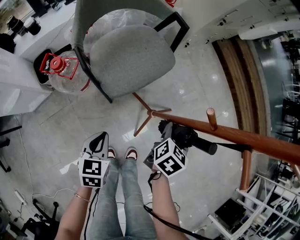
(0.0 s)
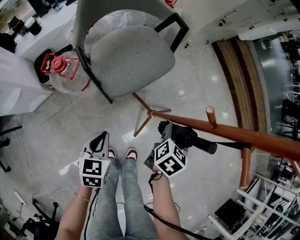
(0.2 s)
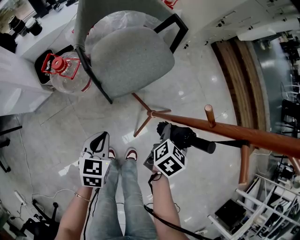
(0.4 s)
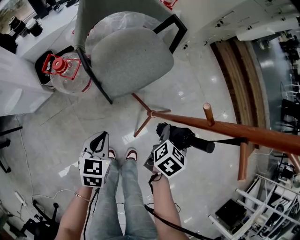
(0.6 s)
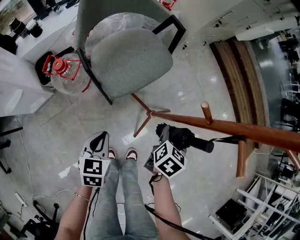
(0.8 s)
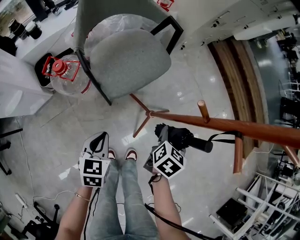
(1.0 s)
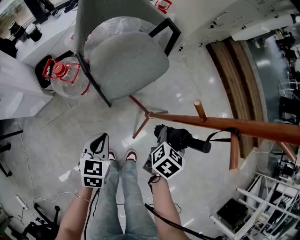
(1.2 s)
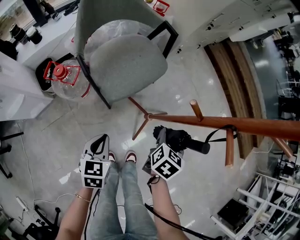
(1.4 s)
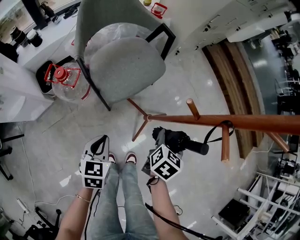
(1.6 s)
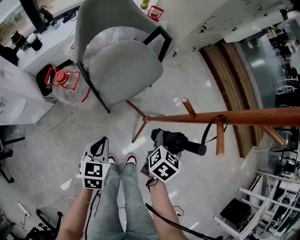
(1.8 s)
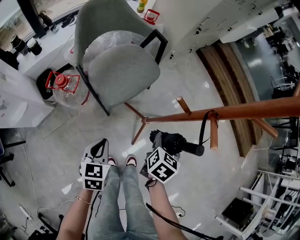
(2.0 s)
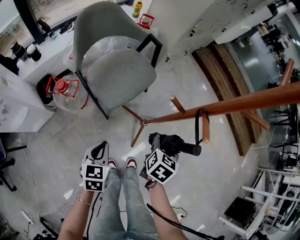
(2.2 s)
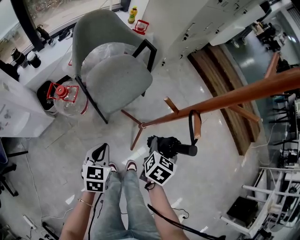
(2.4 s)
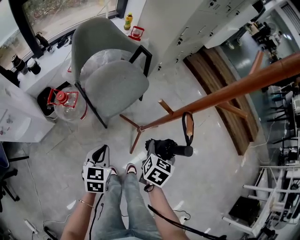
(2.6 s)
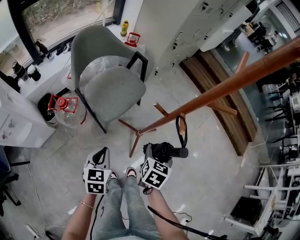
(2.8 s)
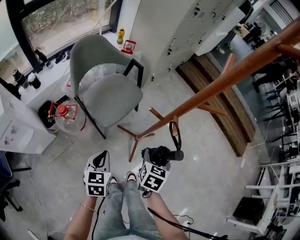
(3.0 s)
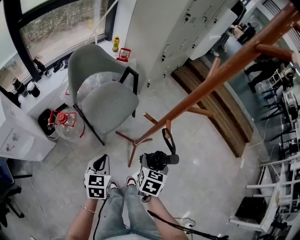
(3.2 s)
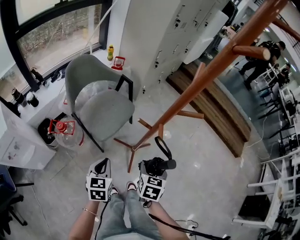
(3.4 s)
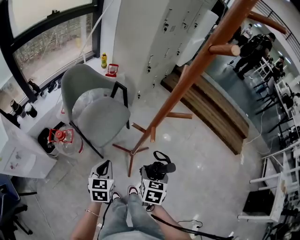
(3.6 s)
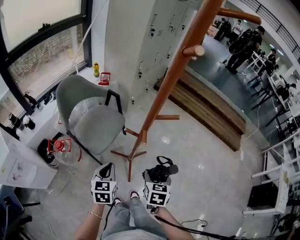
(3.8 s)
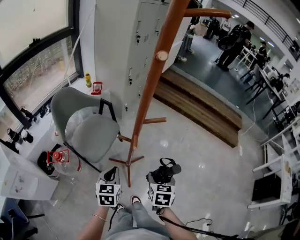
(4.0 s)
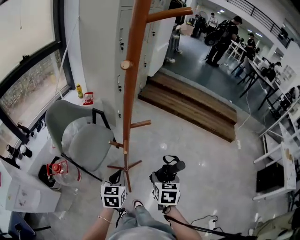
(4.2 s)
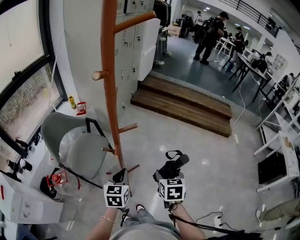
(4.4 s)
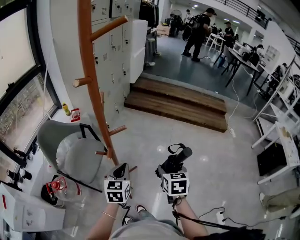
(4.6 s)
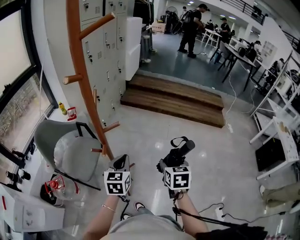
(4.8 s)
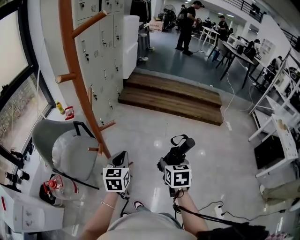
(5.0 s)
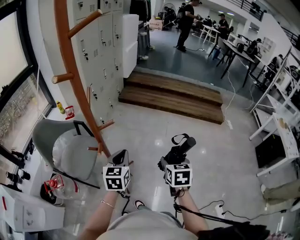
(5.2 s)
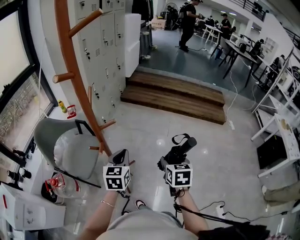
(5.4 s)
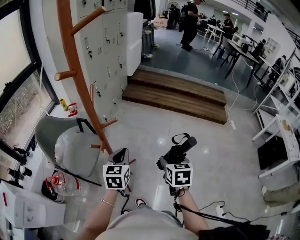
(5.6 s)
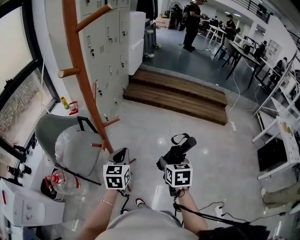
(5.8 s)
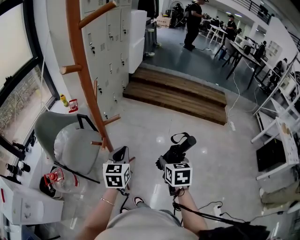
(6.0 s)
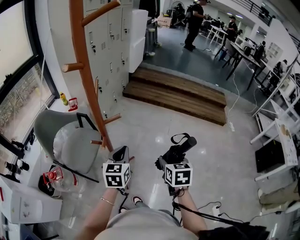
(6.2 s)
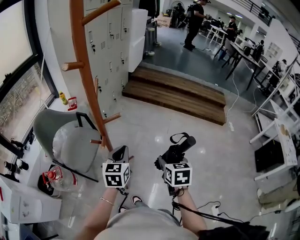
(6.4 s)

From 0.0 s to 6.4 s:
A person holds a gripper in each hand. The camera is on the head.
From 0.0 s to 1.6 s: The right gripper ends up about 5 cm from where it was.
From 1.6 s to 3.2 s: The right gripper goes some 15 cm upward and backward. The left gripper shifts some 15 cm upward.
From 3.2 s to 4.8 s: The left gripper is displaced to the right, upward and forward by approximately 35 cm, and turns by some 30 degrees. Meanwhile the right gripper is displaced to the right and upward by roughly 30 cm.
From 4.8 s to 6.4 s: The grippers make only small movements.

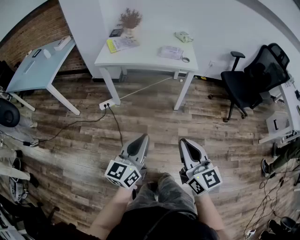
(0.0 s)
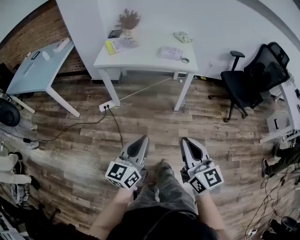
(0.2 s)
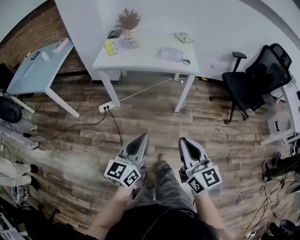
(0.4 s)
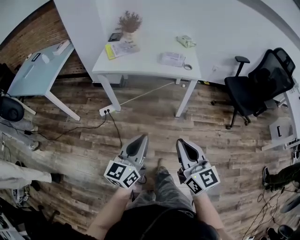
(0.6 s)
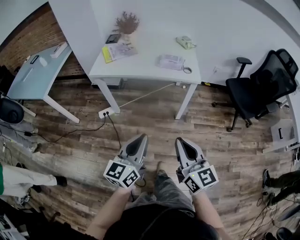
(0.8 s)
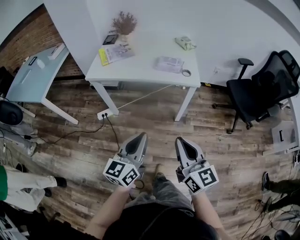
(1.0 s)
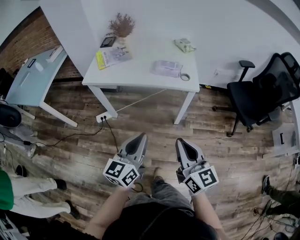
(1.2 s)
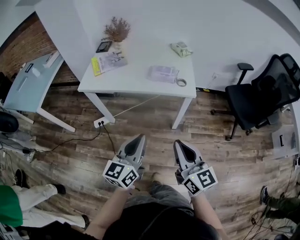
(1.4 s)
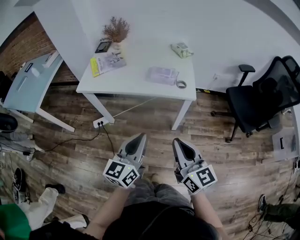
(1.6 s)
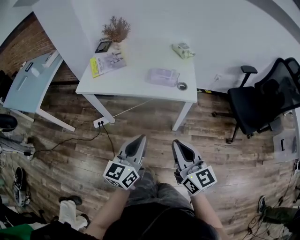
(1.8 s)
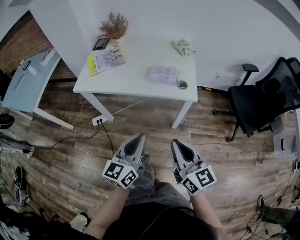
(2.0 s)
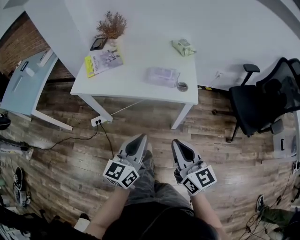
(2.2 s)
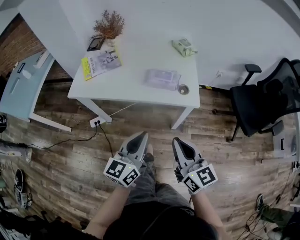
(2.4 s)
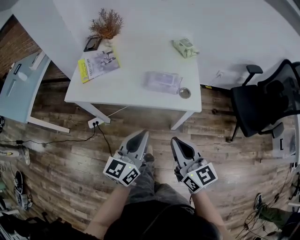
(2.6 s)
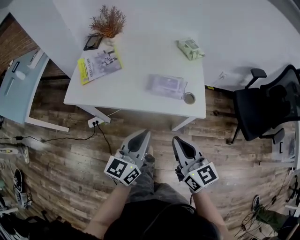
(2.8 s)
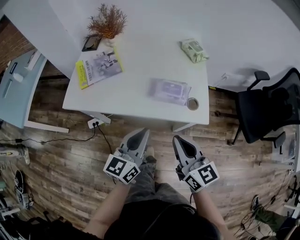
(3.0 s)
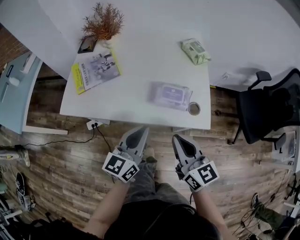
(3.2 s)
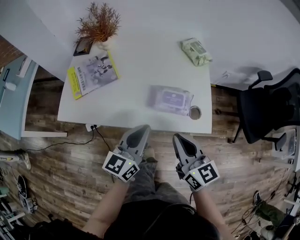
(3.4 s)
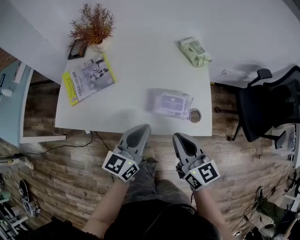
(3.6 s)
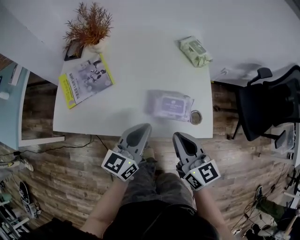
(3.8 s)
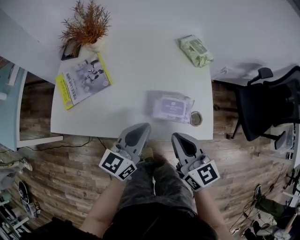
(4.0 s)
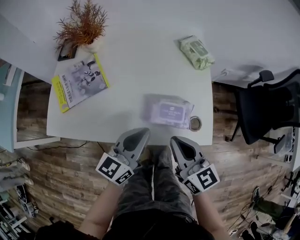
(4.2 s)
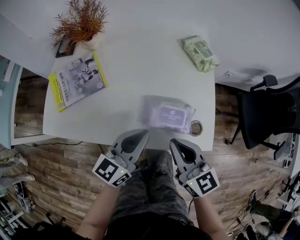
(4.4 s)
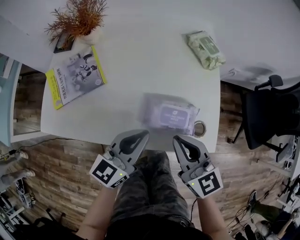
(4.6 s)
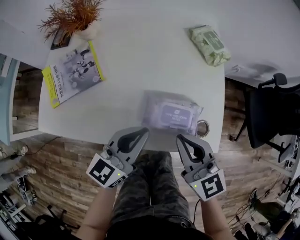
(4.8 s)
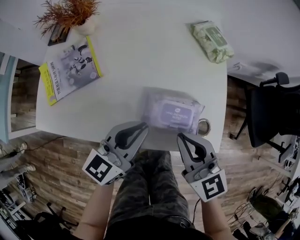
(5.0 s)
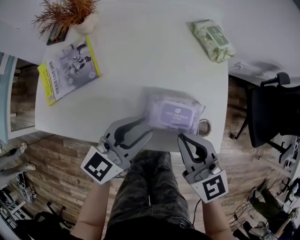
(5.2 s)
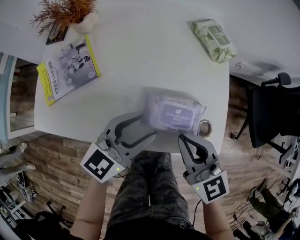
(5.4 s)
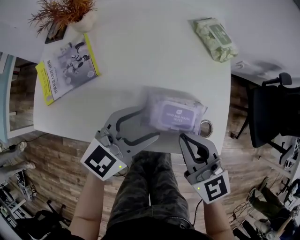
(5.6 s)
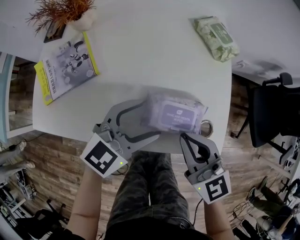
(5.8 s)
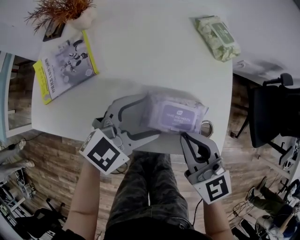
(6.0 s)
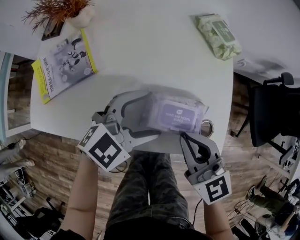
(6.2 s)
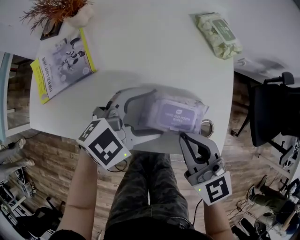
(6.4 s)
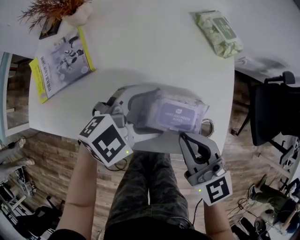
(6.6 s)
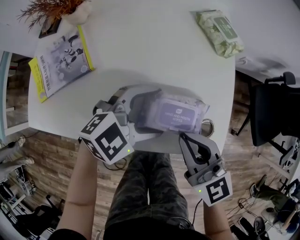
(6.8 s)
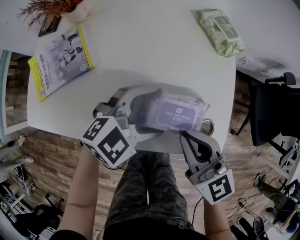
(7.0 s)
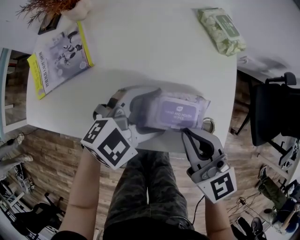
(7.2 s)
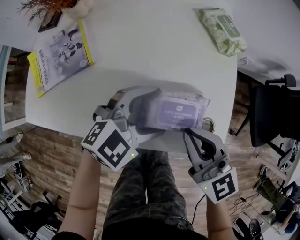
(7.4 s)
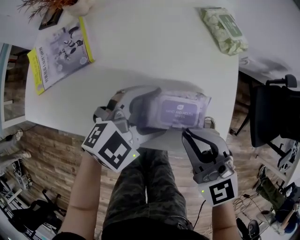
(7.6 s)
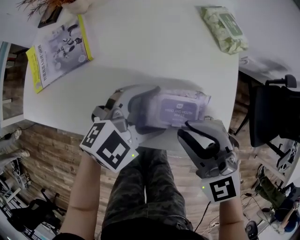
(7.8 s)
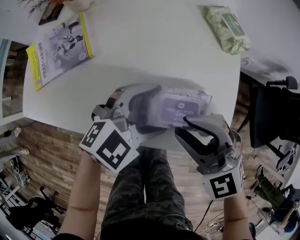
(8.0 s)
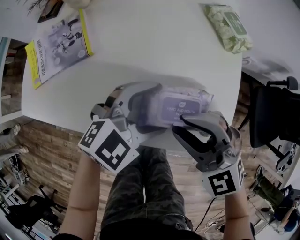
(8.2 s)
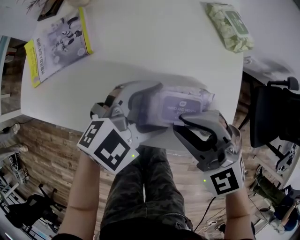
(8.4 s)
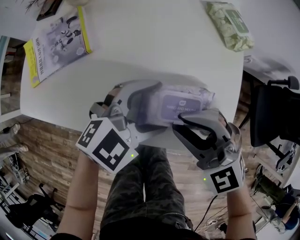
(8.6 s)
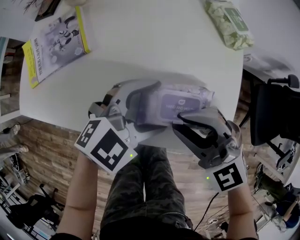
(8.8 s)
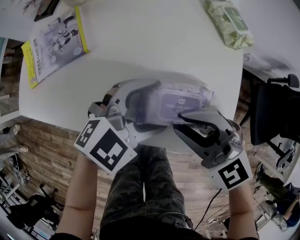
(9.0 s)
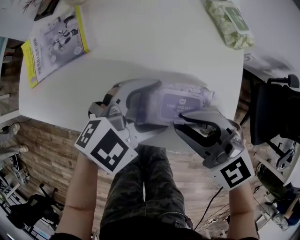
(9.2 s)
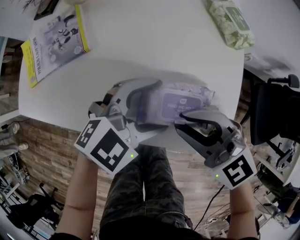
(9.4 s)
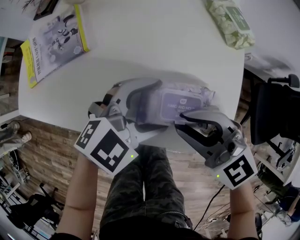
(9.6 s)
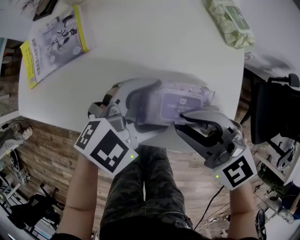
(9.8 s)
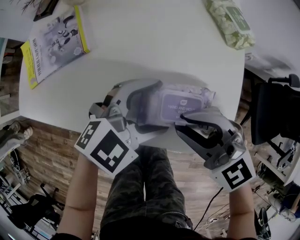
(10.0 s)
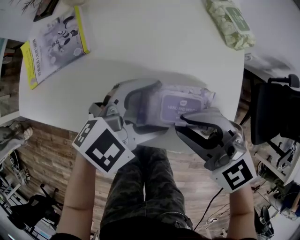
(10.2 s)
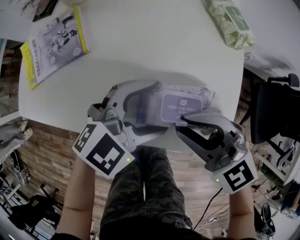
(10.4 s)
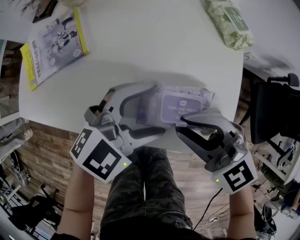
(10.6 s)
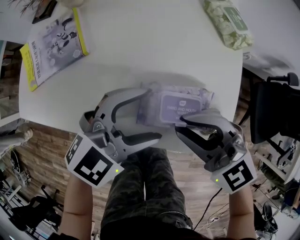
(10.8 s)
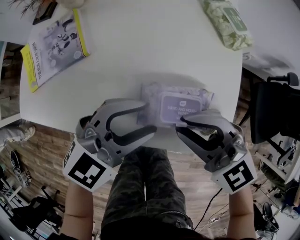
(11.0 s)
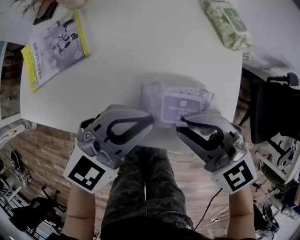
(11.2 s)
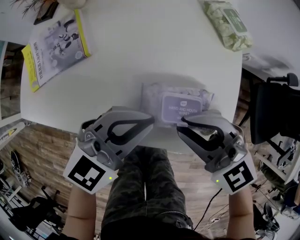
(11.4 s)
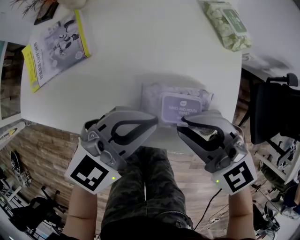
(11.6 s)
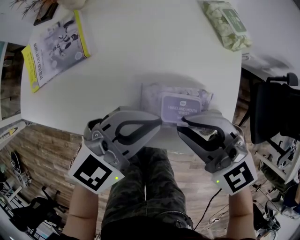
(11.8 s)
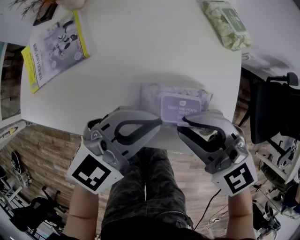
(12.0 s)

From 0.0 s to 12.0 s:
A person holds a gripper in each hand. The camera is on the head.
From 0.0 s to 1.6 s: Both grippers travel together forward, about 30 cm.
From 1.6 s to 3.0 s: Both grippers move forward, some 20 cm.
From 3.0 s to 4.4 s: Both grippers move forward, about 15 cm.
From 4.4 s to 6.0 s: The left gripper is displaced forward by roughly 5 cm, swivels about 40 degrees, and opens its fingers.
From 6.0 s to 7.6 s: The right gripper turns by about 20 degrees.
From 7.6 s to 9.0 s: The right gripper swivels approximately 20 degrees.
From 9.0 s to 10.4 s: The grippers stay close to where they were, moving slightly.
From 10.4 s to 12.0 s: The left gripper closes its fingers.

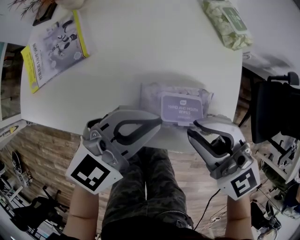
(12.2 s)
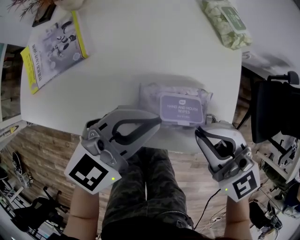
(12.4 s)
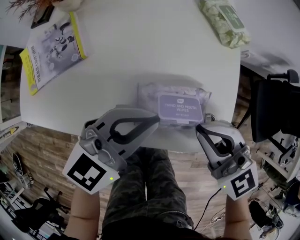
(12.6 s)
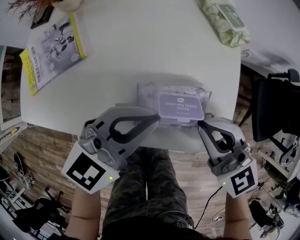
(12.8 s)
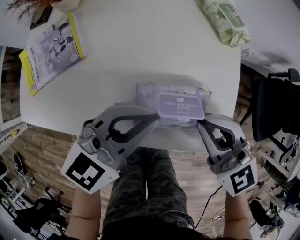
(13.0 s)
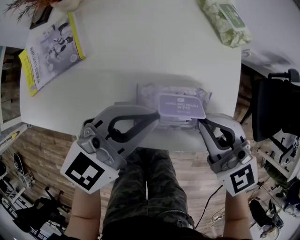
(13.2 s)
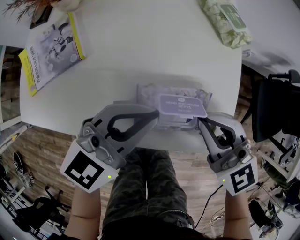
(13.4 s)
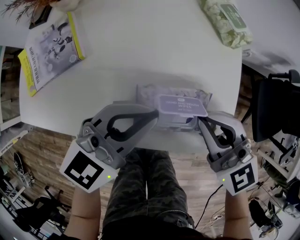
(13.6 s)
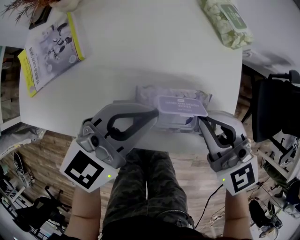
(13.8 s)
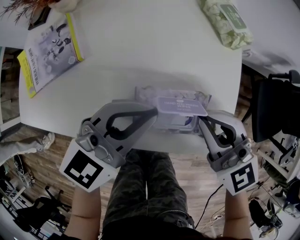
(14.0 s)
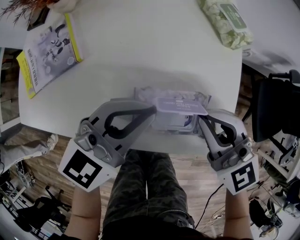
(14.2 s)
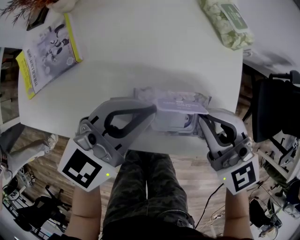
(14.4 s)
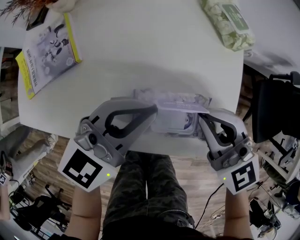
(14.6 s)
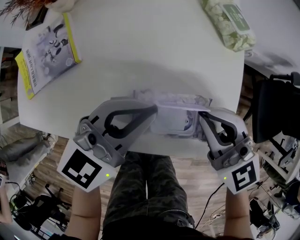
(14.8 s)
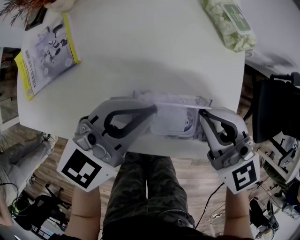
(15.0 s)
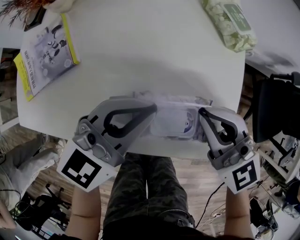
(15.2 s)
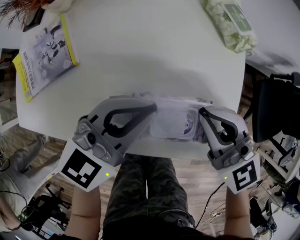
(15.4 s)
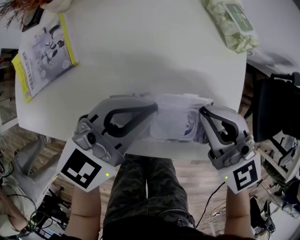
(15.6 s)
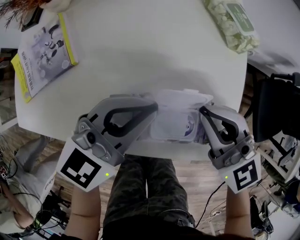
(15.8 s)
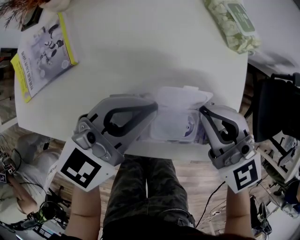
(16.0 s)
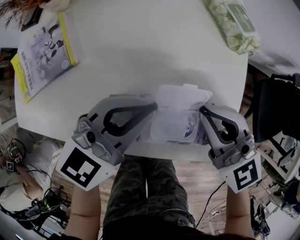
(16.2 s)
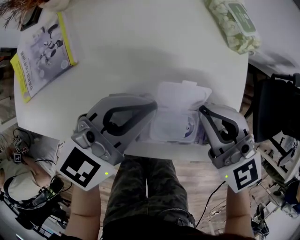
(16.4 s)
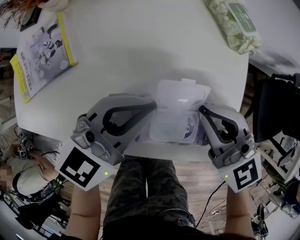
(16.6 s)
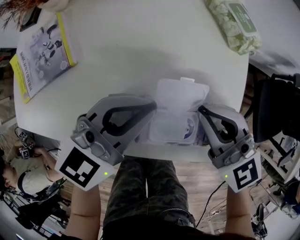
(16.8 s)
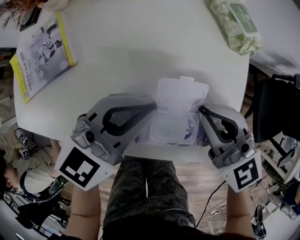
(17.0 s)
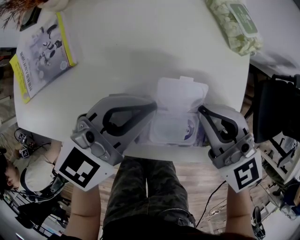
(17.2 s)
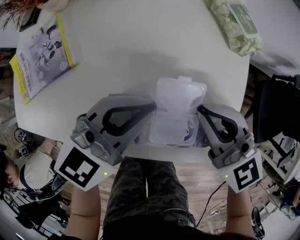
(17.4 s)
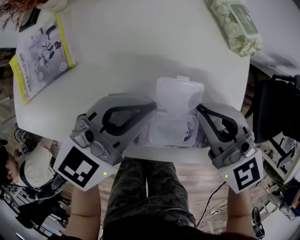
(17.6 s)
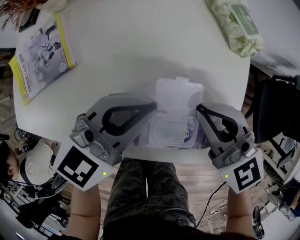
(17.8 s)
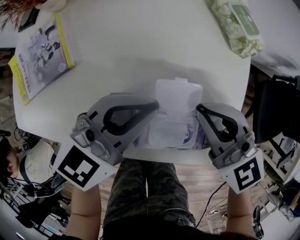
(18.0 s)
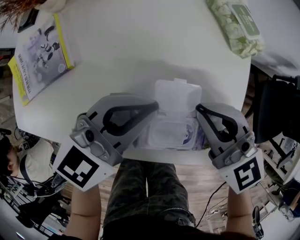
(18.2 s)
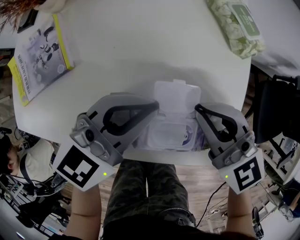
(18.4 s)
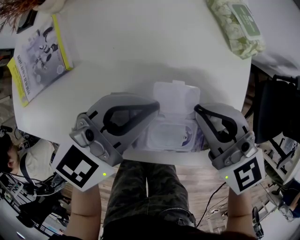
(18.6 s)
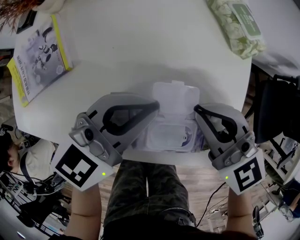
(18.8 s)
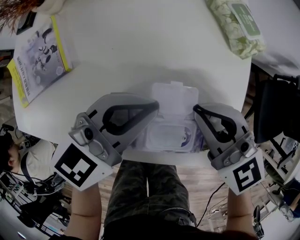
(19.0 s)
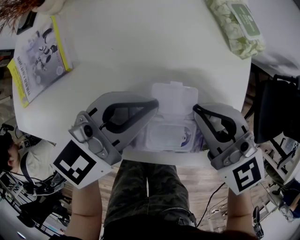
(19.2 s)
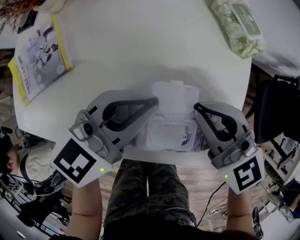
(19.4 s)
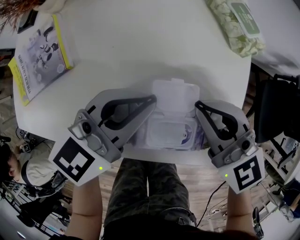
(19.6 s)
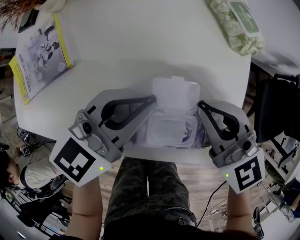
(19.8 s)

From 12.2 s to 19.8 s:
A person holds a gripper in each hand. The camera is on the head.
From 12.2 s to 13.8 s: There are only small adjustments of the grippers.
From 13.8 s to 18.2 s: The grippers make only small movements.
From 18.2 s to 19.8 s: There are only small adjustments of the grippers.
